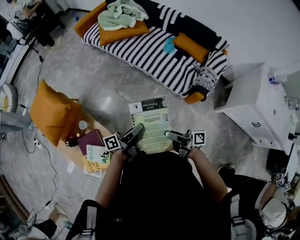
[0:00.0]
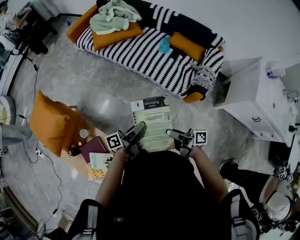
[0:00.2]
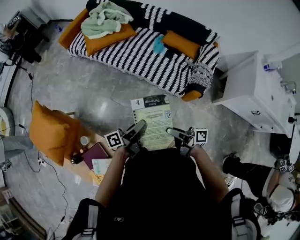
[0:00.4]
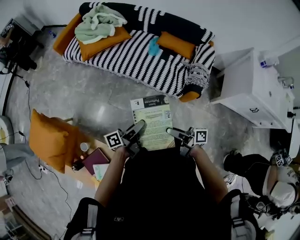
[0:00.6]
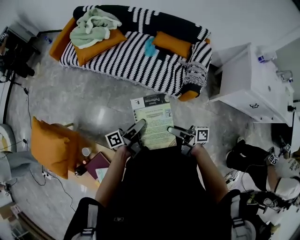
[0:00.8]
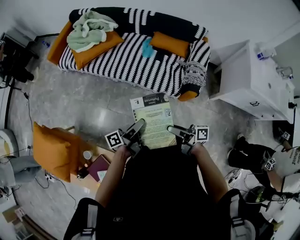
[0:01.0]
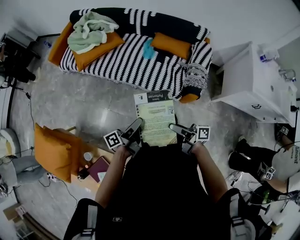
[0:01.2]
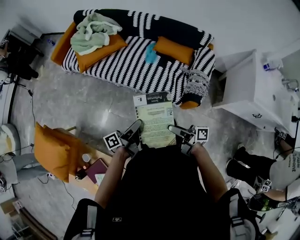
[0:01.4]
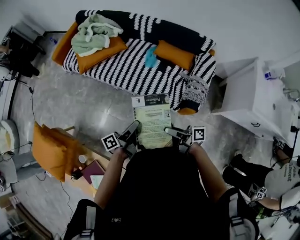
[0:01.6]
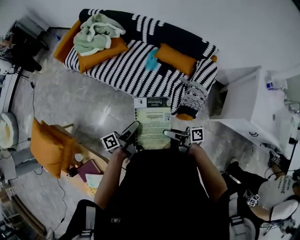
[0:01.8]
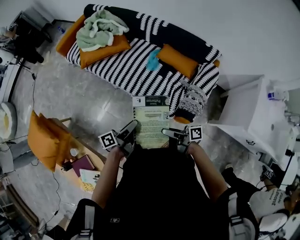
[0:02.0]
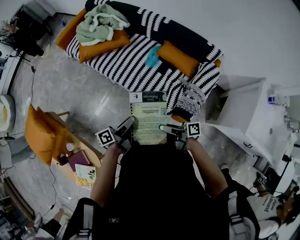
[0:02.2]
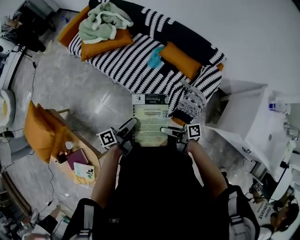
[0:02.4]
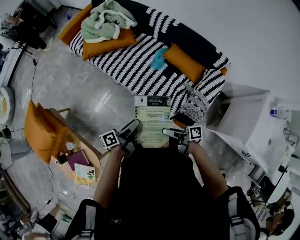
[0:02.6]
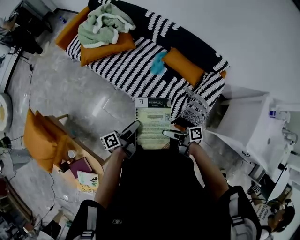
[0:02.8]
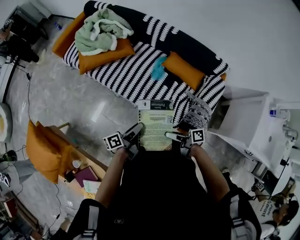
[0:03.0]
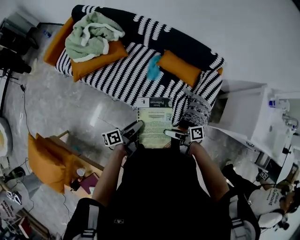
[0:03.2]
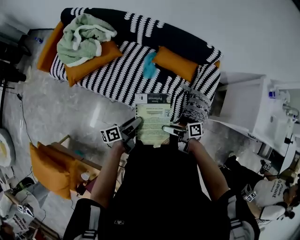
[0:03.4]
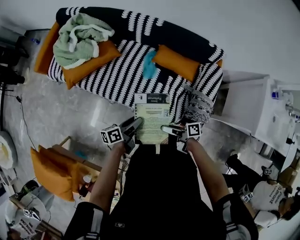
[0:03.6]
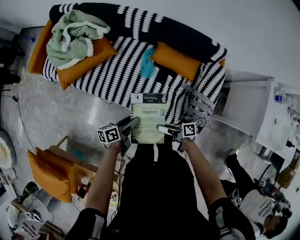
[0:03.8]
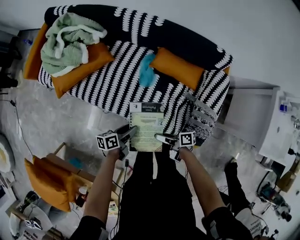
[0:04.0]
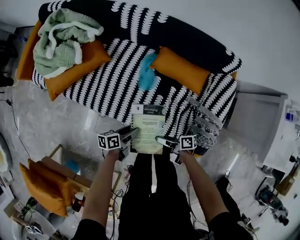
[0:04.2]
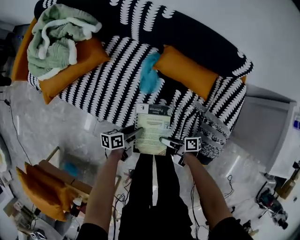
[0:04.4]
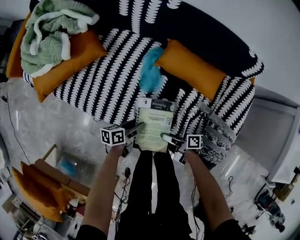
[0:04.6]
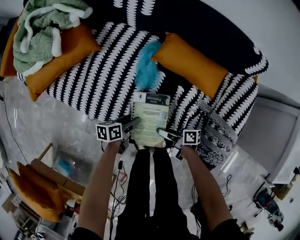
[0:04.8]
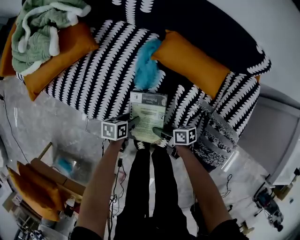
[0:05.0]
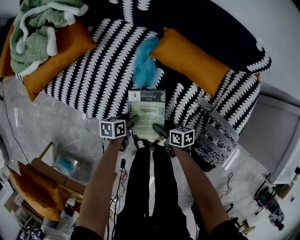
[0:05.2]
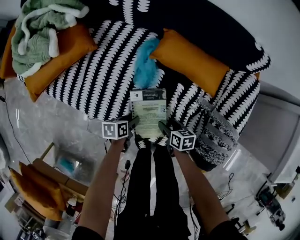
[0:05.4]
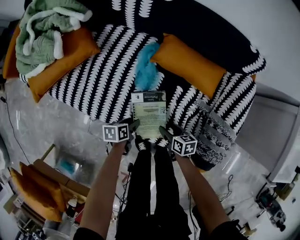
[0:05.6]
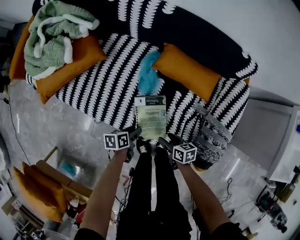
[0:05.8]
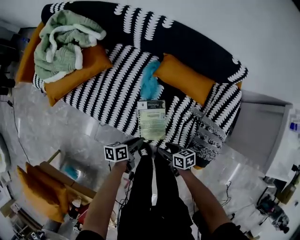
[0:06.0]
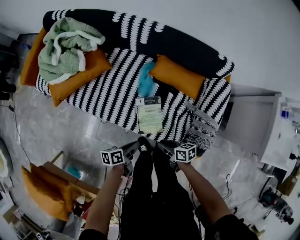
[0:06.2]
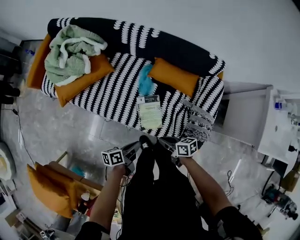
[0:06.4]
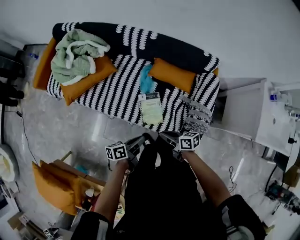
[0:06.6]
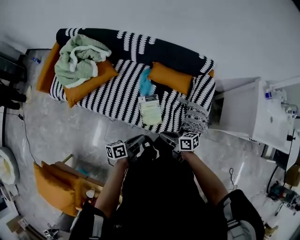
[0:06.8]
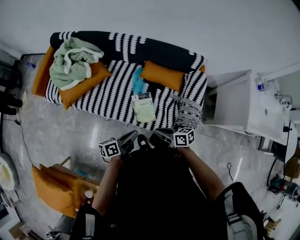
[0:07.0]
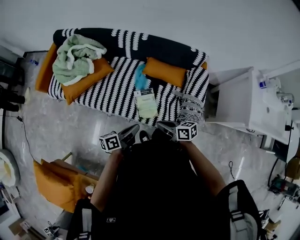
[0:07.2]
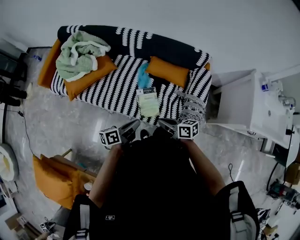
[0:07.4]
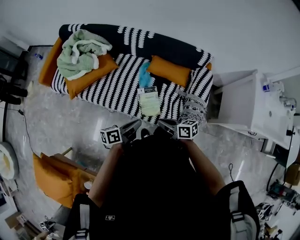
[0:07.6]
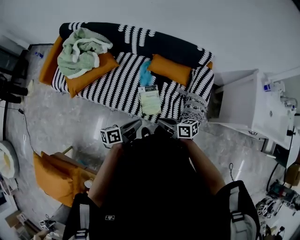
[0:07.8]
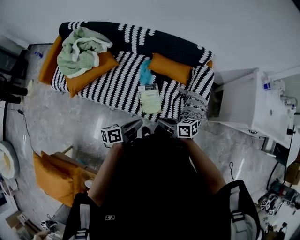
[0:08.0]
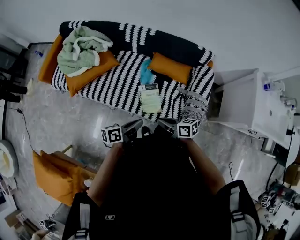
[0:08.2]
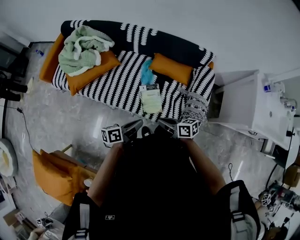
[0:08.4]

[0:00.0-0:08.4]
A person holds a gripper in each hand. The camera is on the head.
0:00.0 to 0:01.4: The left gripper is displaced forward by some 20 cm. Meanwhile the right gripper travels forward and to the right by roughly 20 cm.
0:01.4 to 0:02.8: The two grippers go approximately 15 cm forward and to the right. The right gripper rotates about 30 degrees.
0:02.8 to 0:04.2: Both grippers move downward, approximately 25 cm. The right gripper changes its angle by some 20 degrees, while the left gripper rotates roughly 40 degrees.
0:04.2 to 0:05.6: The two grippers go about 15 cm downward. The right gripper angles its fingers downward, by about 30 degrees; the left gripper rotates approximately 20 degrees.
0:05.6 to 0:07.0: Both grippers travel together upward, about 40 cm. The right gripper rotates about 30 degrees, and closes up; the left gripper tilts its fingers approximately 40 degrees upward, and closes.
0:07.0 to 0:08.4: The grippers move only a little.

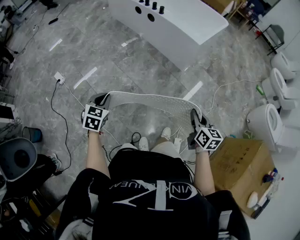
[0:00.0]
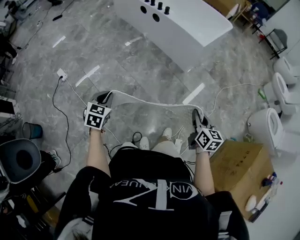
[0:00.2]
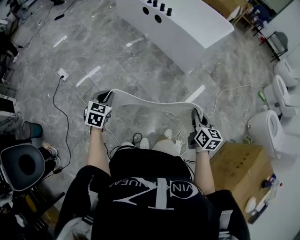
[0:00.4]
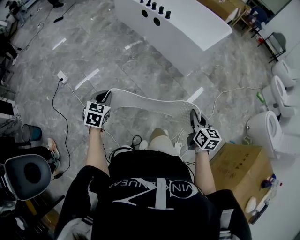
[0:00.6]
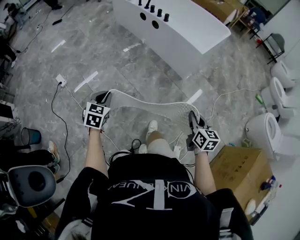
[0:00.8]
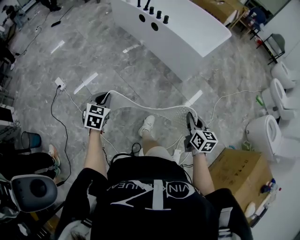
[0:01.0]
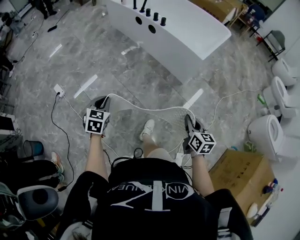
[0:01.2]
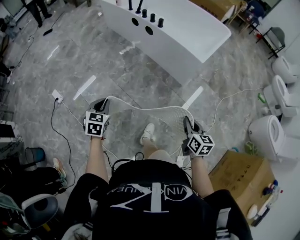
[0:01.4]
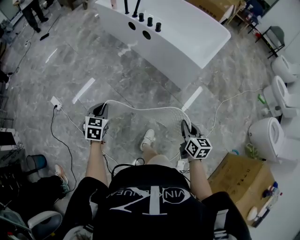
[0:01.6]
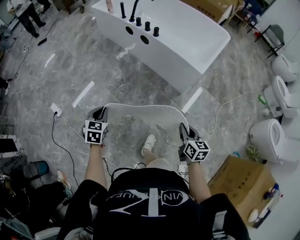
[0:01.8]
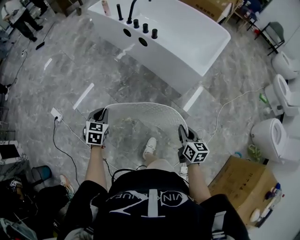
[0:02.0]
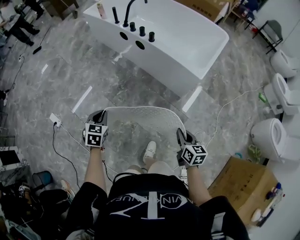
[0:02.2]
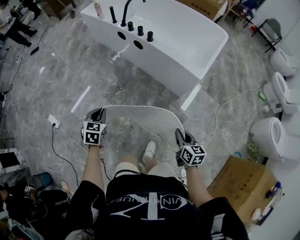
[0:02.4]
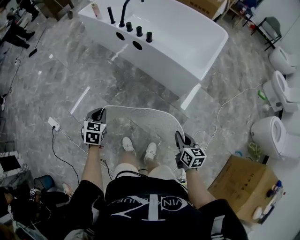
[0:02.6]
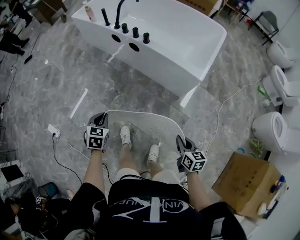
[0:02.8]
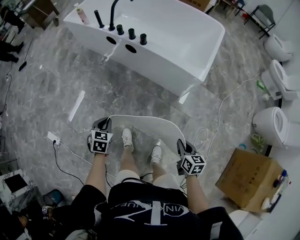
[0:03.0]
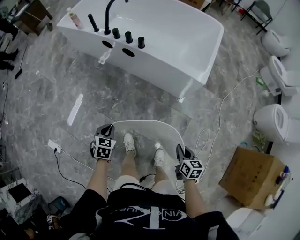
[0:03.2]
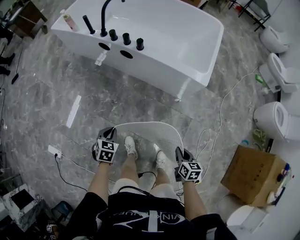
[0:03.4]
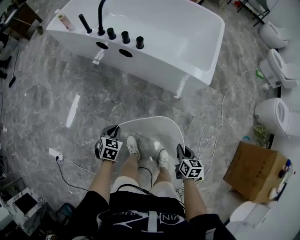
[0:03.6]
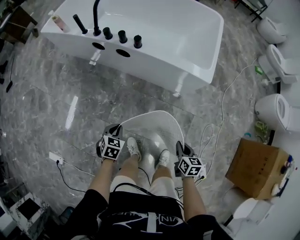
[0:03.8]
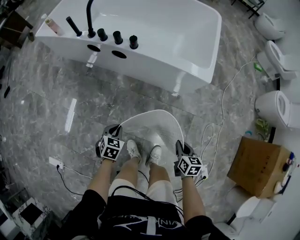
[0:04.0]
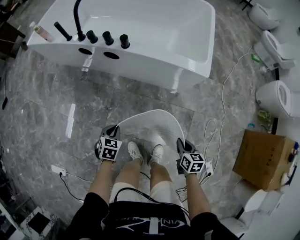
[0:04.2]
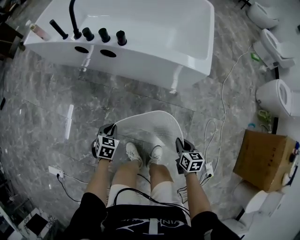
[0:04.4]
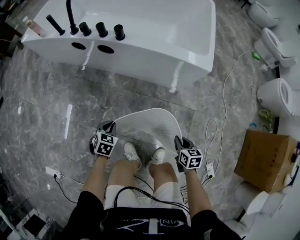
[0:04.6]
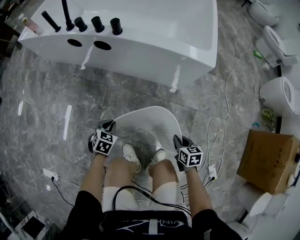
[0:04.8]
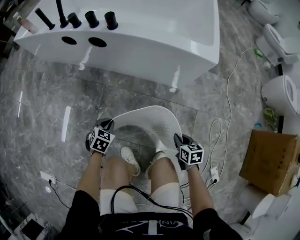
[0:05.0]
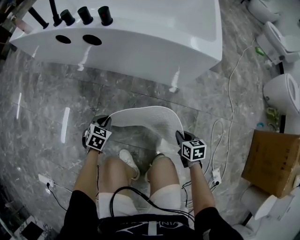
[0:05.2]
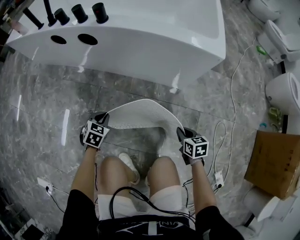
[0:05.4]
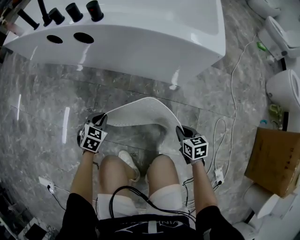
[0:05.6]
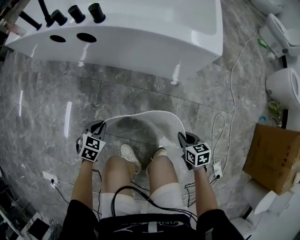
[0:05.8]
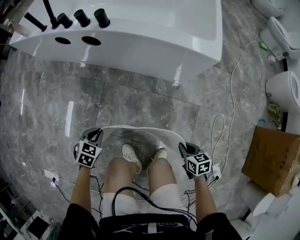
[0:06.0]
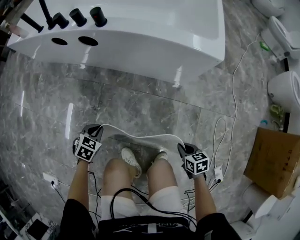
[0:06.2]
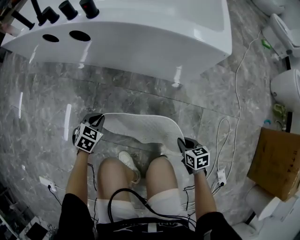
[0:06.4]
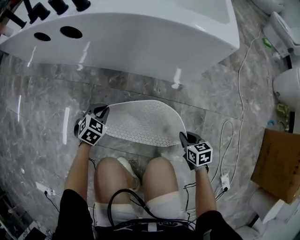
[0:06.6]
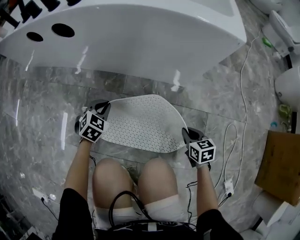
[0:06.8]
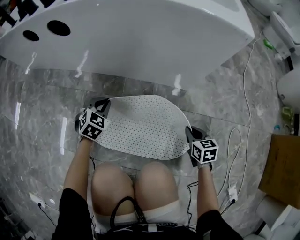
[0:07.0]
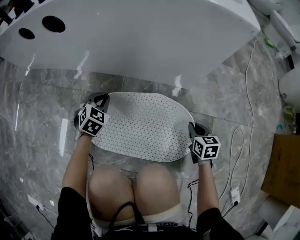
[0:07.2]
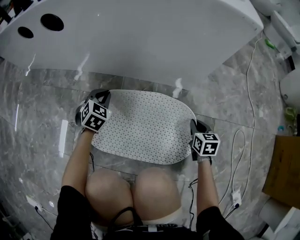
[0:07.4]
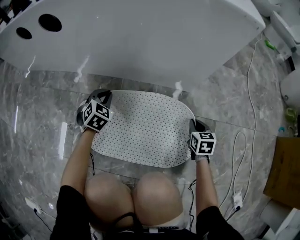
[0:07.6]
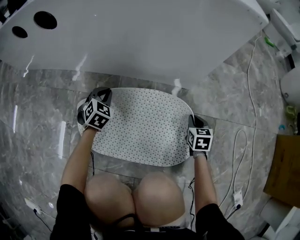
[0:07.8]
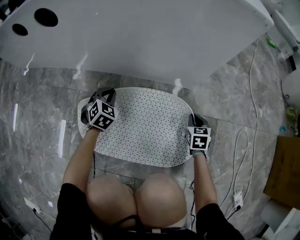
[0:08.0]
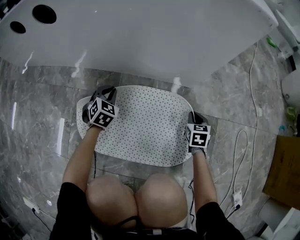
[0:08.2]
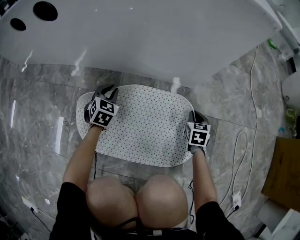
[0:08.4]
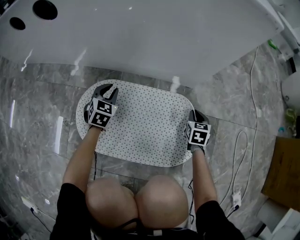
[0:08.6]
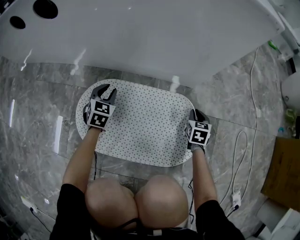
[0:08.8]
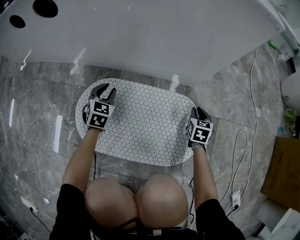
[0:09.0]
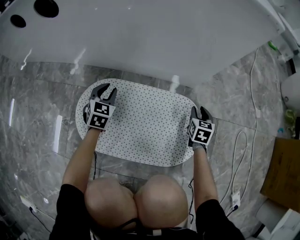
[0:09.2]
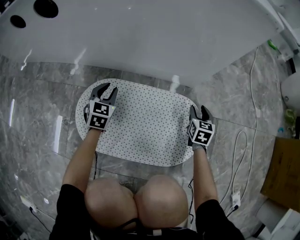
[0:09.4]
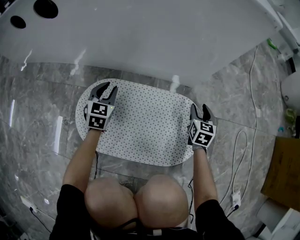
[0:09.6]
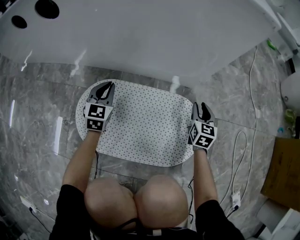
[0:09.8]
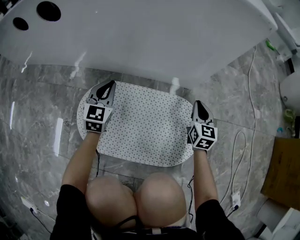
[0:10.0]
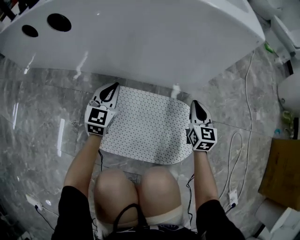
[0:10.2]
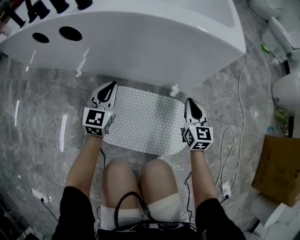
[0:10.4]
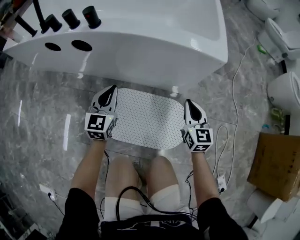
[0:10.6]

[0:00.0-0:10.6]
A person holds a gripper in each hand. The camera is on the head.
0:00.0 to 0:01.6: Both grippers move forward, approximately 25 cm.
0:01.6 to 0:03.0: The right gripper travels forward and downward by about 15 cm. Meanwhile the left gripper heads forward and downward, covering approximately 25 cm.
0:03.0 to 0:04.6: The left gripper heads downward and forward, covering about 25 cm, and changes its angle by some 20 degrees. The right gripper travels downward by roughly 20 cm.
0:04.6 to 0:06.0: Both grippers move downward, approximately 10 cm.
0:06.0 to 0:07.6: The grippers both shift downward and forward by approximately 40 cm. The left gripper swivels roughly 20 degrees. The right gripper swivels approximately 30 degrees.
0:07.6 to 0:09.0: The right gripper moves roughly 5 cm. Meanwhile the left gripper opens.
0:09.0 to 0:10.6: The grippers both shift upward by approximately 40 cm. The right gripper turns by approximately 30 degrees, and opens, then closes once more. The left gripper swivels roughly 30 degrees, and closes.

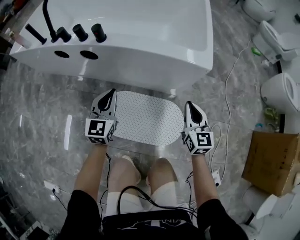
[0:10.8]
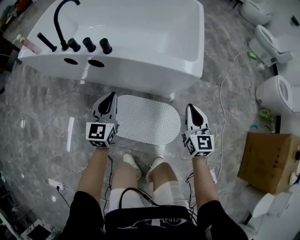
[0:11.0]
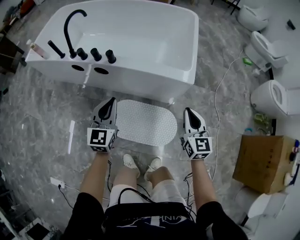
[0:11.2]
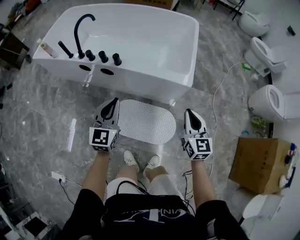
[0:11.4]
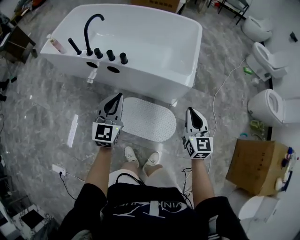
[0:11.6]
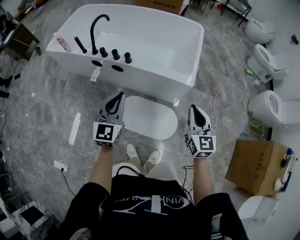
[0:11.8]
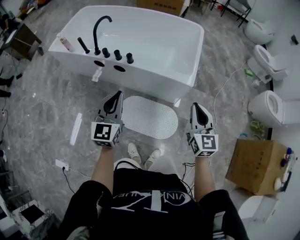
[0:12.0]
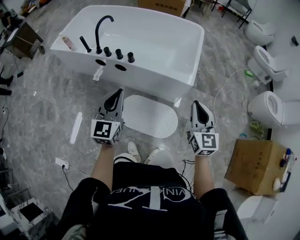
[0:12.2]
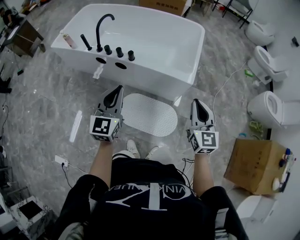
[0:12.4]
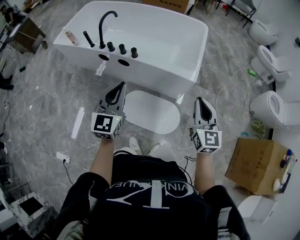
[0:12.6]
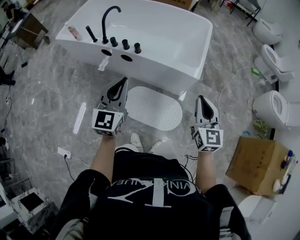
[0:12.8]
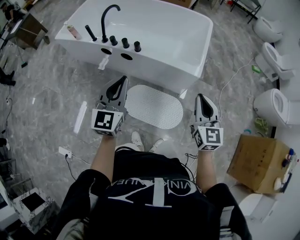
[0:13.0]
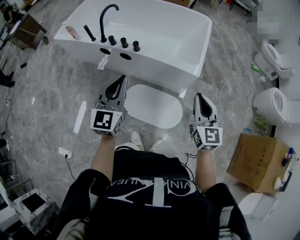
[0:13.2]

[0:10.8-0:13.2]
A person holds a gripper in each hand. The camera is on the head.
0:10.8 to 0:12.0: The two grippers go approximately 40 cm upward.
0:12.0 to 0:13.2: The grippers stay close to where they were, moving slightly.

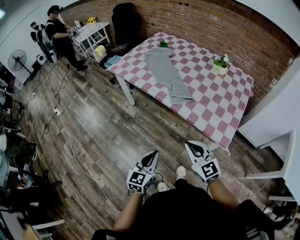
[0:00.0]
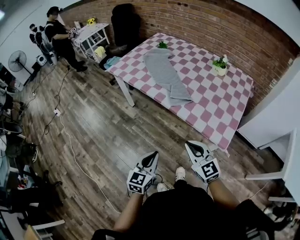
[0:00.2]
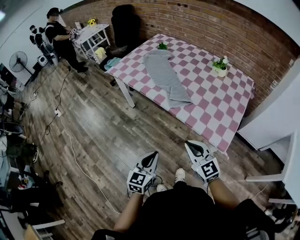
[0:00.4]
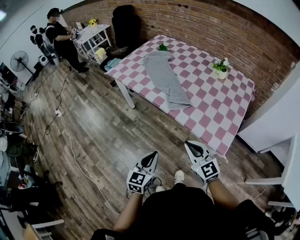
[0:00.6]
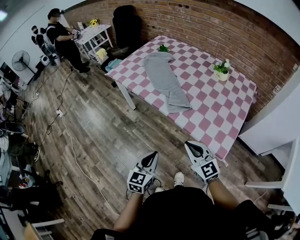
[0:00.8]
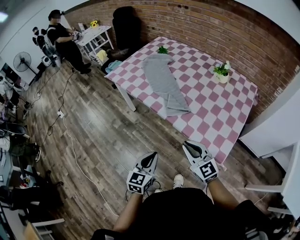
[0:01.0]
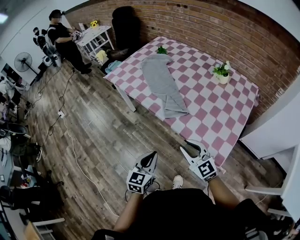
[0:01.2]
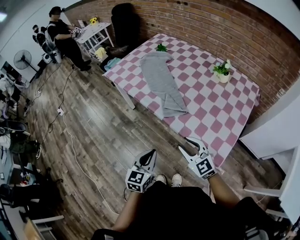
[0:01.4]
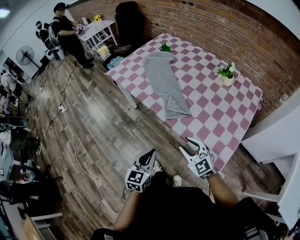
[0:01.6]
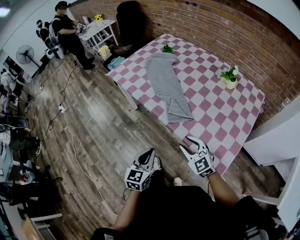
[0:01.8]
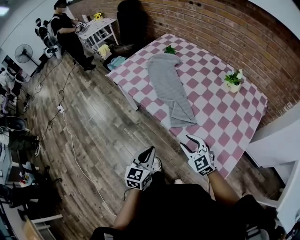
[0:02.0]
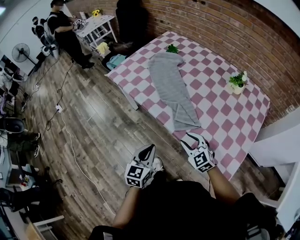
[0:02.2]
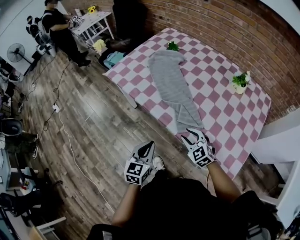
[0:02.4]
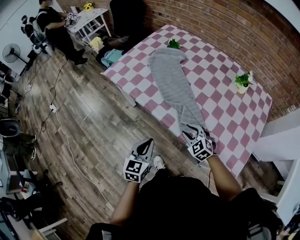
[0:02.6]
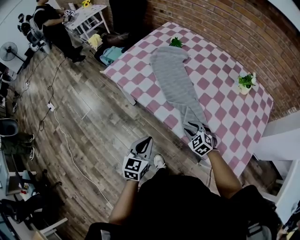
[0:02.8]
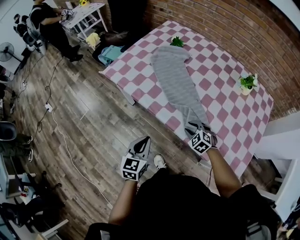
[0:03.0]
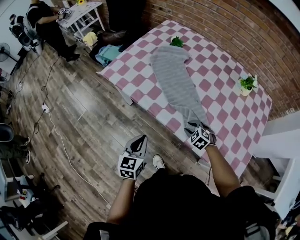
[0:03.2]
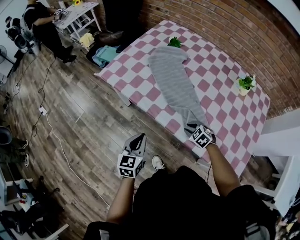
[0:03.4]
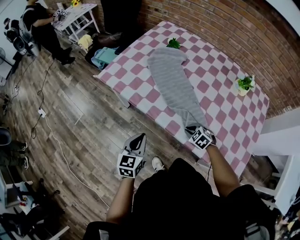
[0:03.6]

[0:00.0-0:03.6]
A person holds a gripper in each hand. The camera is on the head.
0:00.0 to 0:01.8: The left gripper heads forward and to the right, covering roughly 15 cm. The right gripper travels forward, downward and to the right by approximately 20 cm, and opens up.
0:01.8 to 0:03.6: The right gripper shifts some 30 cm forward and downward, tilts its fingers roughly 40 degrees downward, and closes up; the left gripper shifts about 30 cm forward and to the left.
